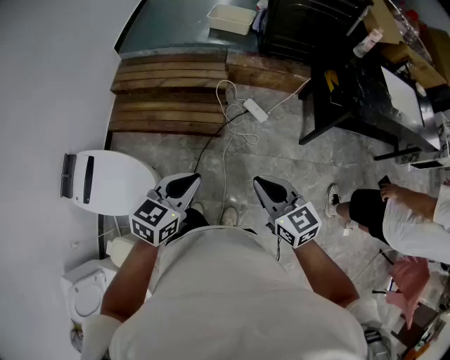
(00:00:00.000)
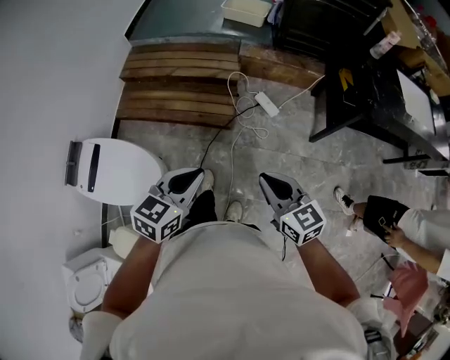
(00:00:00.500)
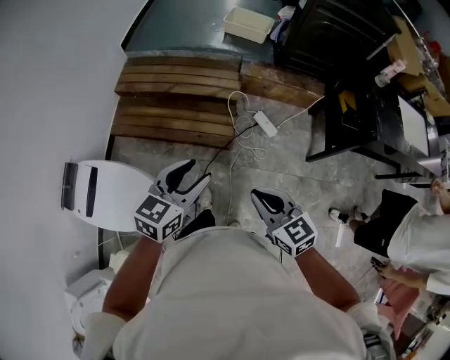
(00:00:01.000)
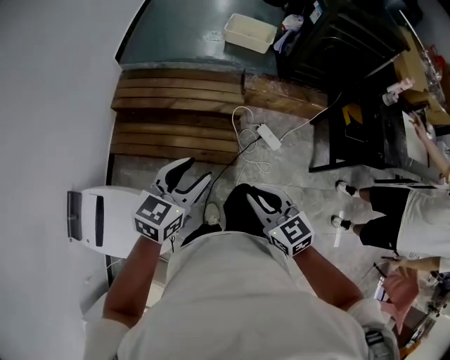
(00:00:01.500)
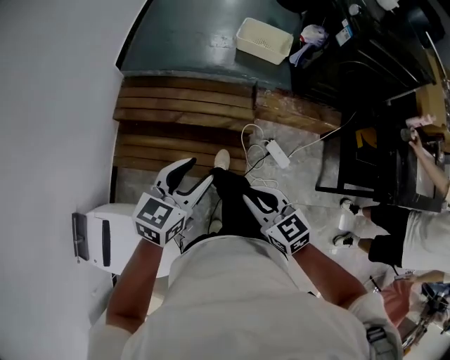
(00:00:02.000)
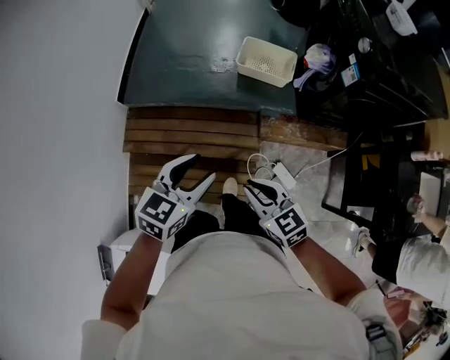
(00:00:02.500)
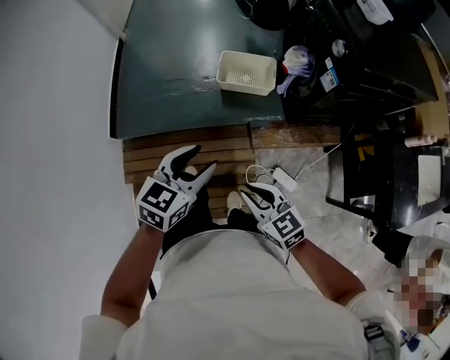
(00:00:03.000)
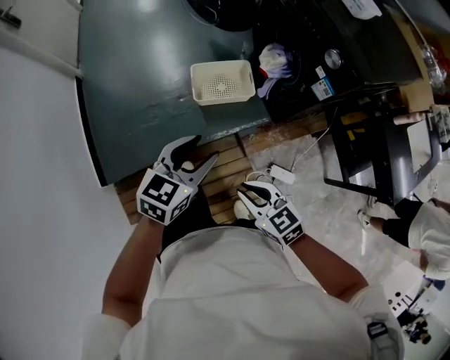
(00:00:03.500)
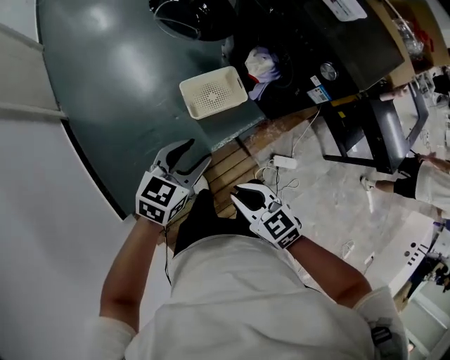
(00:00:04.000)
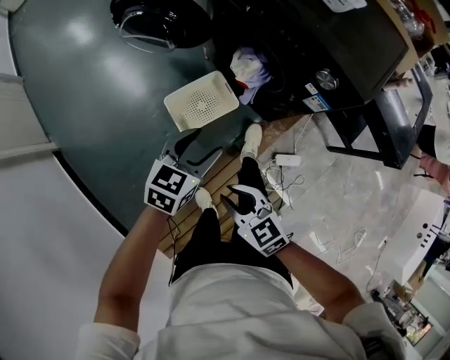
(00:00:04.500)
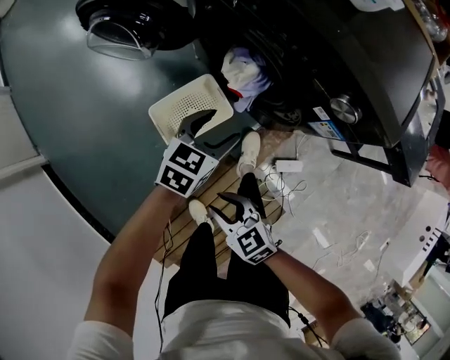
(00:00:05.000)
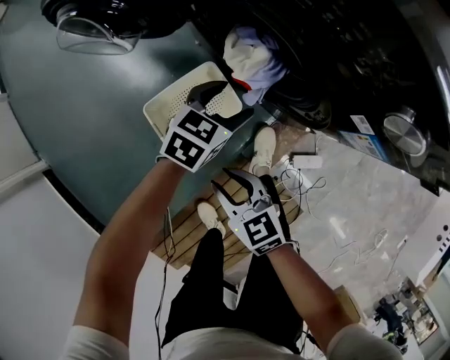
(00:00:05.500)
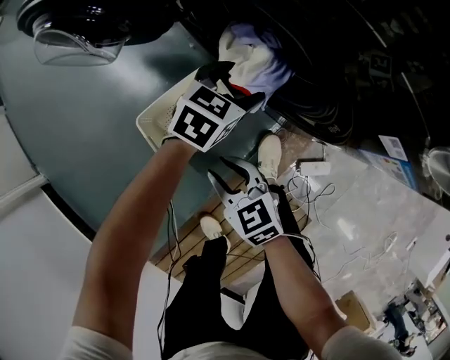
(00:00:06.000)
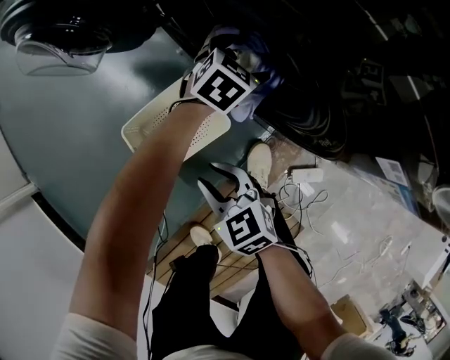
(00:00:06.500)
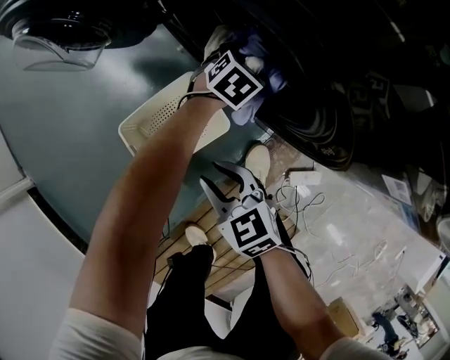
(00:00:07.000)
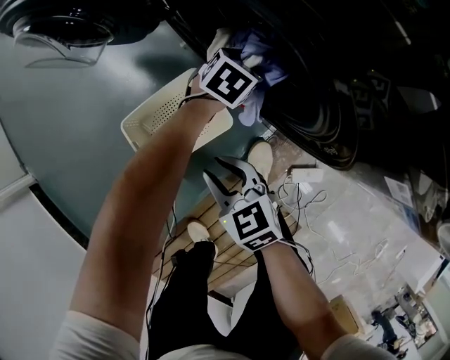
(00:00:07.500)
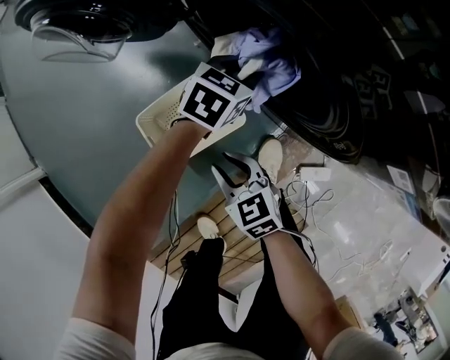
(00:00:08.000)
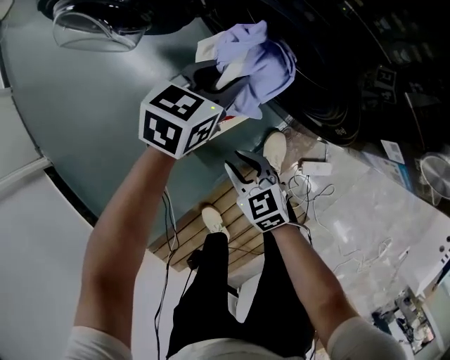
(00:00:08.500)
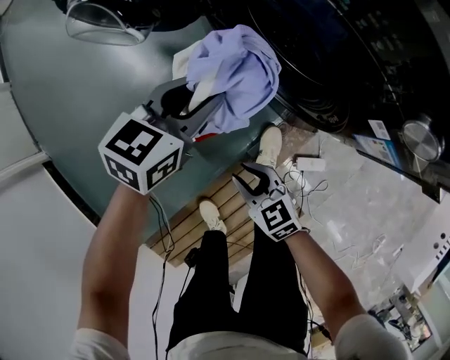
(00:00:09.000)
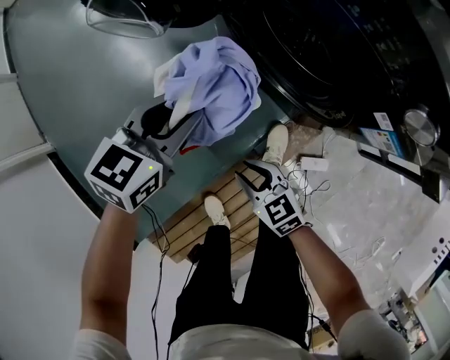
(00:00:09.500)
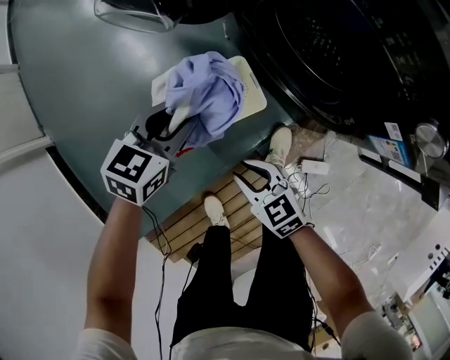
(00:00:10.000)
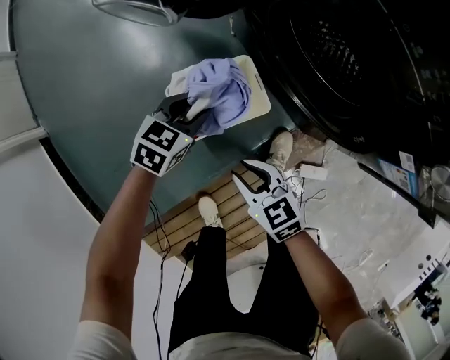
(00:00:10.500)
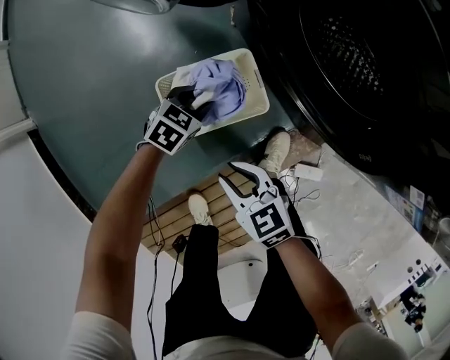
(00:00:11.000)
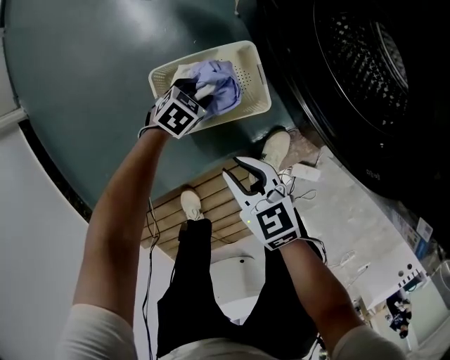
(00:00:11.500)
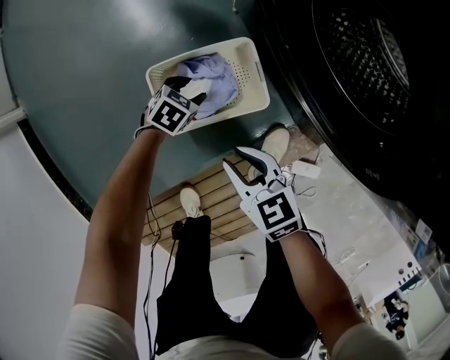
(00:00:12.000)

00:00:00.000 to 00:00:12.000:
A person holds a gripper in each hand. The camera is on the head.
00:00:00.000 to 00:00:02.000: The two grippers travel together, forward and to the left, roughly 50 cm. The left gripper opens.
00:00:02.000 to 00:00:04.000: The two grippers travel together, roughly 70 cm. The right gripper swivels about 30 degrees; the left gripper turns by about 40 degrees.
00:00:04.000 to 00:00:06.000: The left gripper travels forward, downward and to the right by approximately 60 cm, and rotates approximately 20 degrees; the right gripper heads downward and forward, covering some 50 cm, and swivels some 20 degrees.
00:00:06.000 to 00:00:08.000: The left gripper moves about 10 cm downward and comes back, and closes.
00:00:08.000 to 00:00:10.000: The left gripper travels to the left, backward and upward by about 30 cm. The right gripper moves backward and upward, some 15 cm.
00:00:10.000 to 00:00:12.000: The left gripper travels downward by about 35 cm, and rotates some 30 degrees. Meanwhile the right gripper shifts some 10 cm downward and forward.

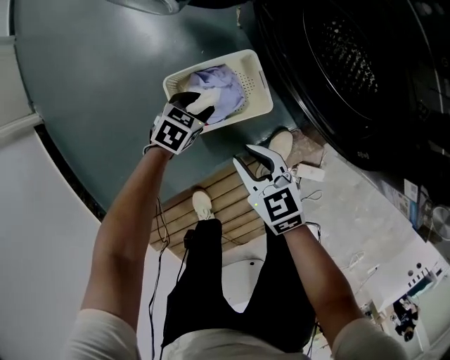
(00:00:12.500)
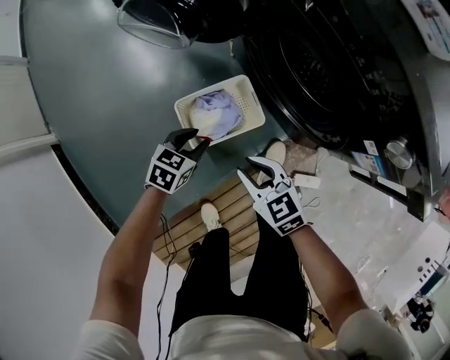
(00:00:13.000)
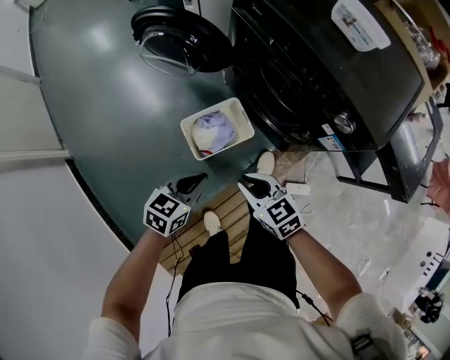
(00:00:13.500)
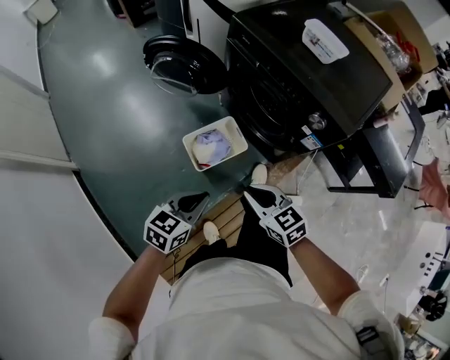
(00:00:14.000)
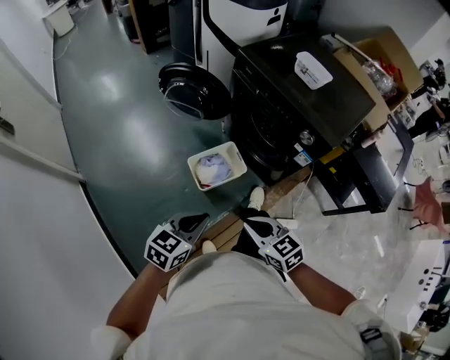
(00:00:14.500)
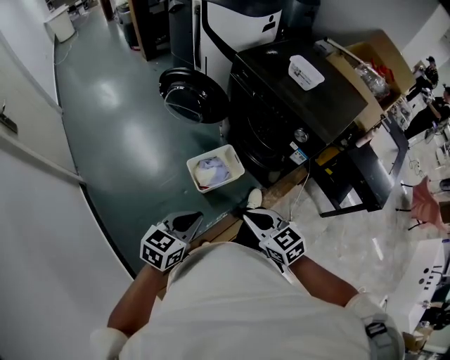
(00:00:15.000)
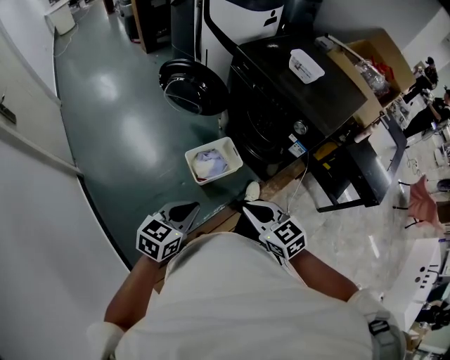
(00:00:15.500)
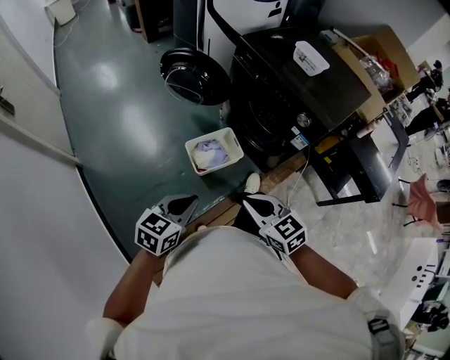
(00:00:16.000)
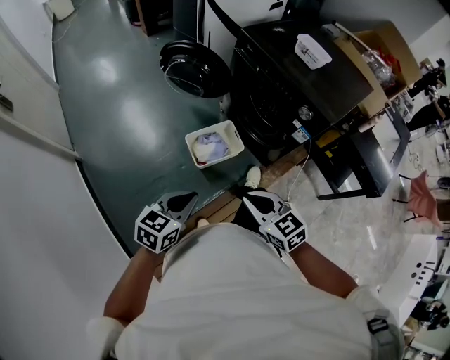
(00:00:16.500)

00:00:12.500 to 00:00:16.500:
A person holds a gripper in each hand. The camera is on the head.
00:00:12.500 to 00:00:14.500: Both grippers move upward and backward, approximately 60 cm. The left gripper rotates approximately 30 degrees, and closes its fingers. Meanwhile the right gripper closes up.
00:00:14.500 to 00:00:16.500: The left gripper ends up some 5 cm from where it was.

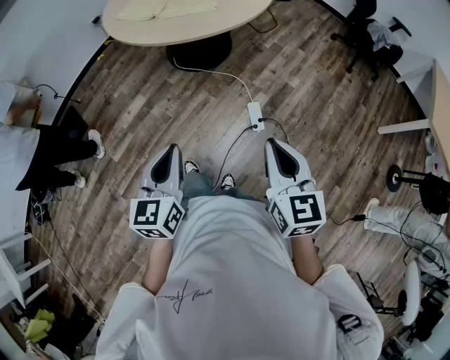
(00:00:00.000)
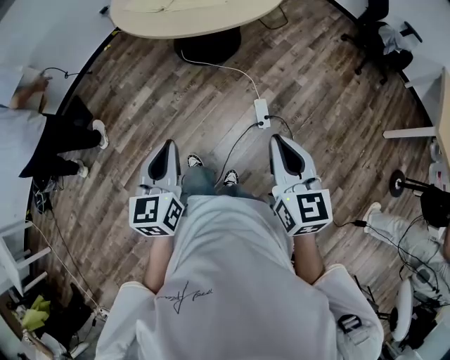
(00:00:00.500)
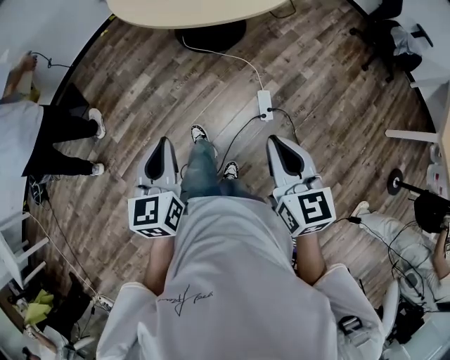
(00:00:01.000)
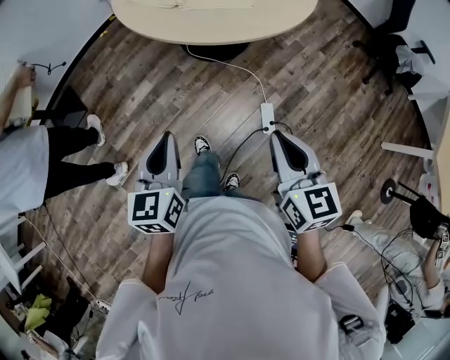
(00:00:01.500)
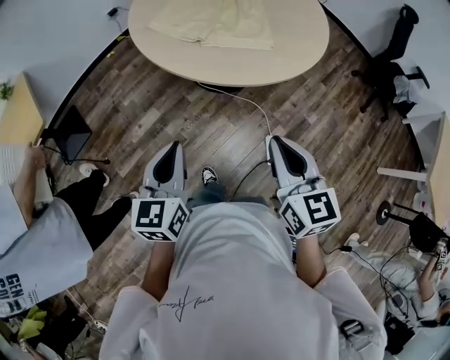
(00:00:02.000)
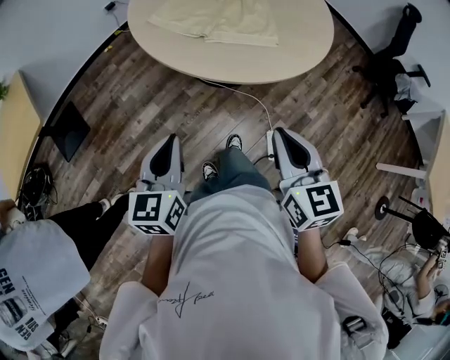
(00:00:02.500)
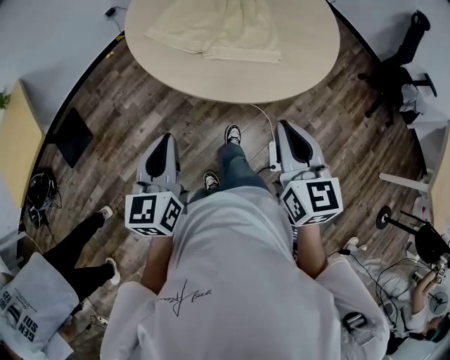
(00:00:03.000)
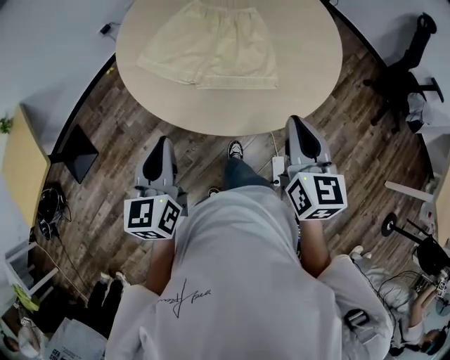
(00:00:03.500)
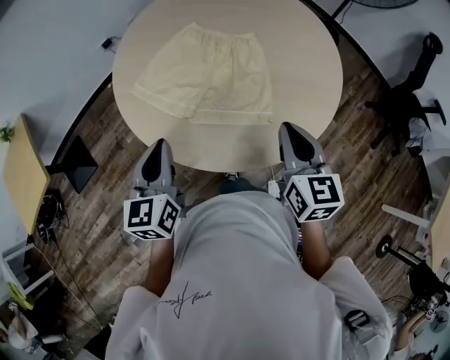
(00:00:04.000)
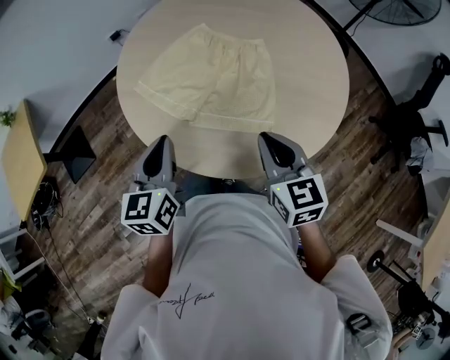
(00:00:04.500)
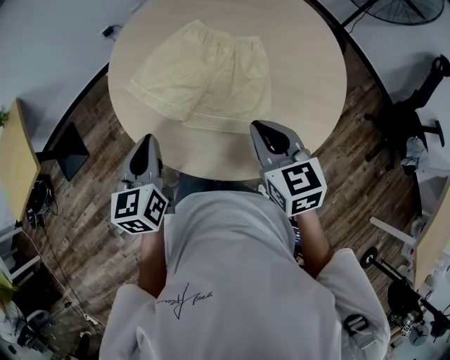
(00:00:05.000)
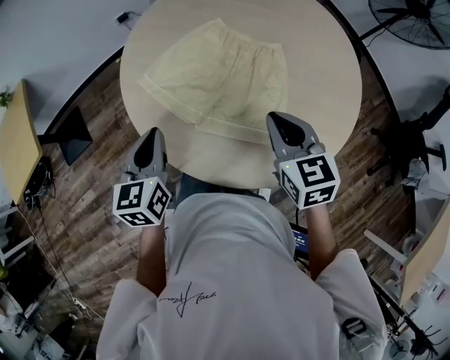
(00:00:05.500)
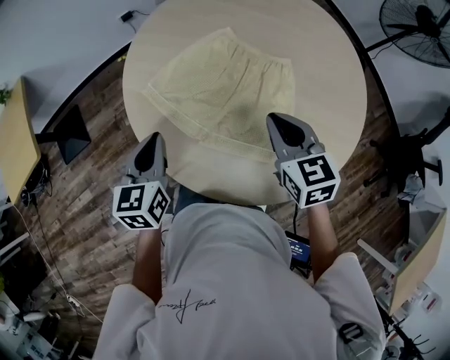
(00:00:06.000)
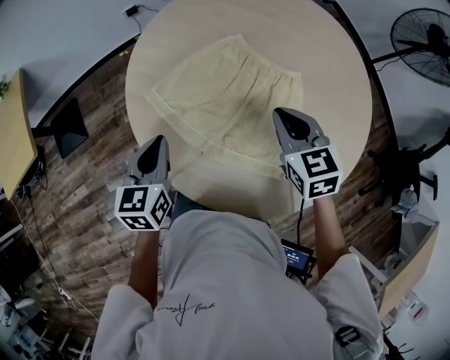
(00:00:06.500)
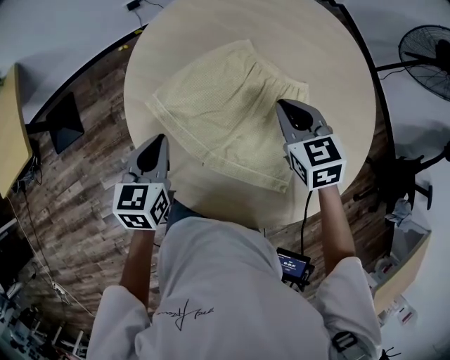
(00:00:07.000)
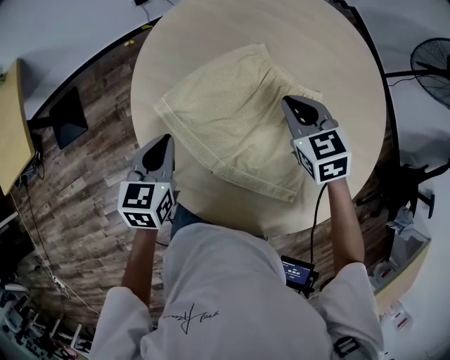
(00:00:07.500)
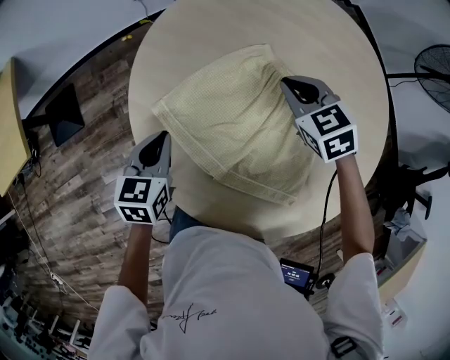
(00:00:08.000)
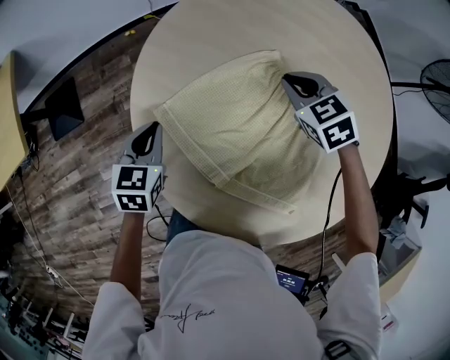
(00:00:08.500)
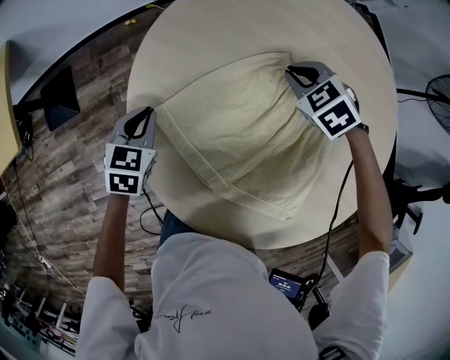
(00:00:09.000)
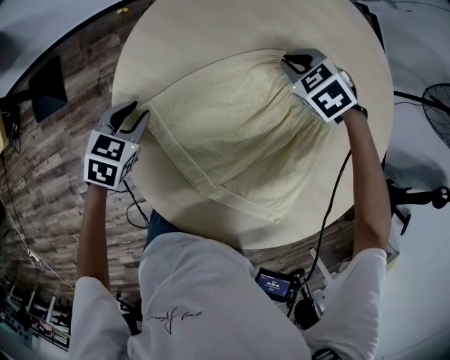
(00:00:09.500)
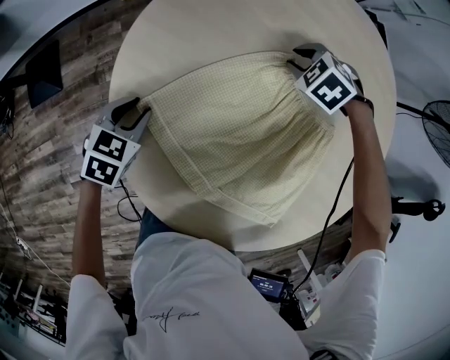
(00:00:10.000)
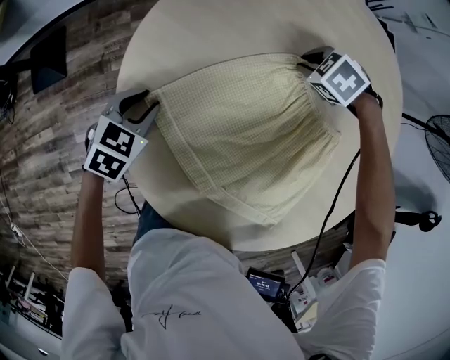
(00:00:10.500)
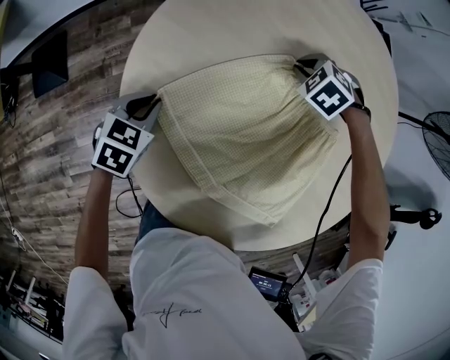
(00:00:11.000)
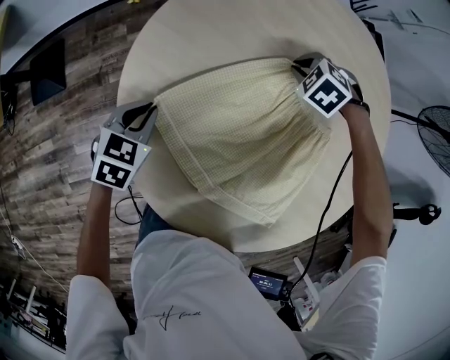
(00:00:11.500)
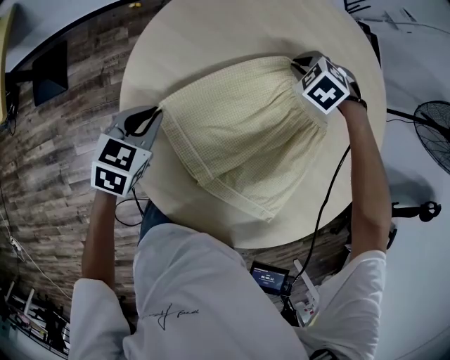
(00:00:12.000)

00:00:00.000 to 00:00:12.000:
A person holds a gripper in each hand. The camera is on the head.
00:00:00.000 to 00:00:02.000: The two grippers go some 30 cm forward and to the left.
00:00:02.000 to 00:00:04.000: The two grippers go about 35 cm forward.
00:00:04.000 to 00:00:06.000: The right gripper moves forward, approximately 20 cm, and changes its angle by roughly 30 degrees. Meanwhile the left gripper travels forward and downward by some 15 cm.
00:00:06.000 to 00:00:08.000: The right gripper moves forward, roughly 25 cm, and rotates some 30 degrees. Meanwhile the left gripper travels forward and downward by some 15 cm.
00:00:08.000 to 00:00:10.000: Both grippers travel together downward, roughly 15 cm. The left gripper changes its angle by about 20 degrees, and opens its fingers. Meanwhile the right gripper points its fingers approximately 30 degrees further downward, and opens up.
00:00:10.000 to 00:00:12.000: The left gripper shifts about 5 cm upward.
